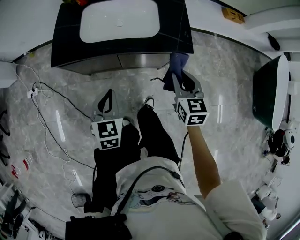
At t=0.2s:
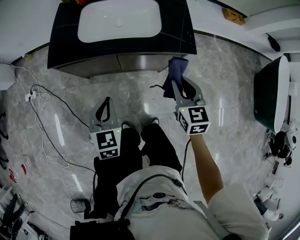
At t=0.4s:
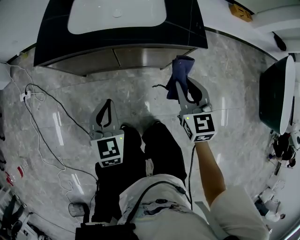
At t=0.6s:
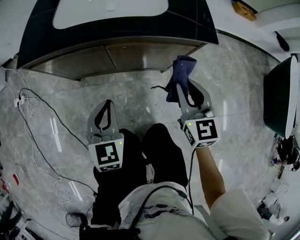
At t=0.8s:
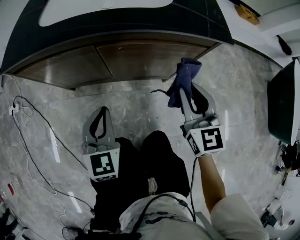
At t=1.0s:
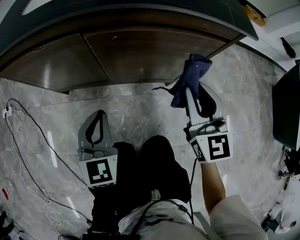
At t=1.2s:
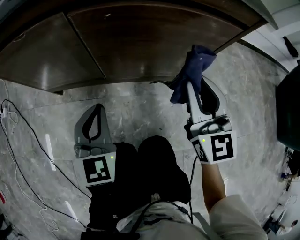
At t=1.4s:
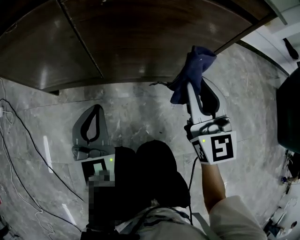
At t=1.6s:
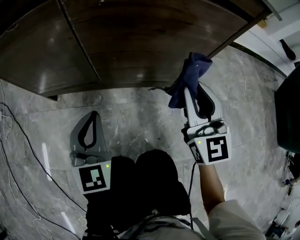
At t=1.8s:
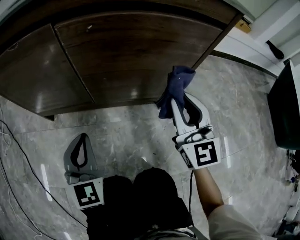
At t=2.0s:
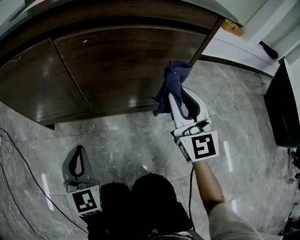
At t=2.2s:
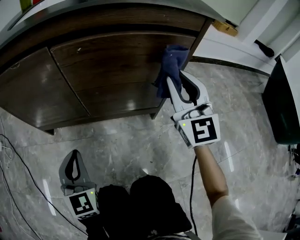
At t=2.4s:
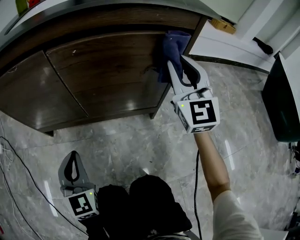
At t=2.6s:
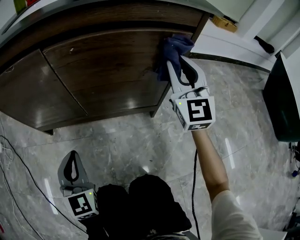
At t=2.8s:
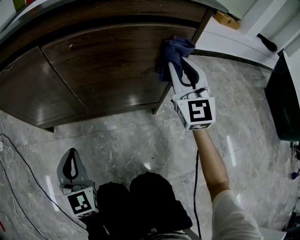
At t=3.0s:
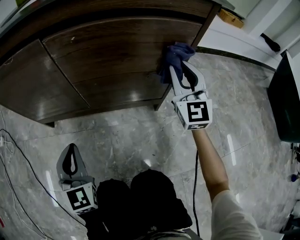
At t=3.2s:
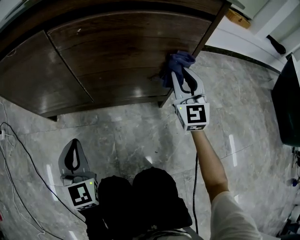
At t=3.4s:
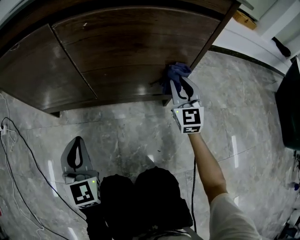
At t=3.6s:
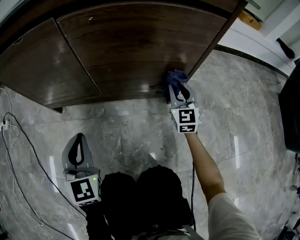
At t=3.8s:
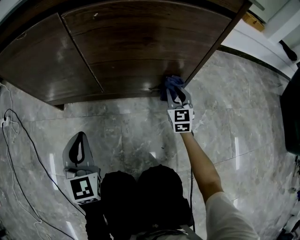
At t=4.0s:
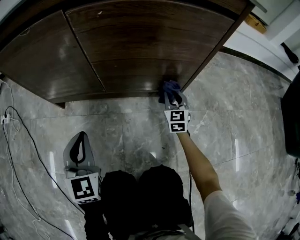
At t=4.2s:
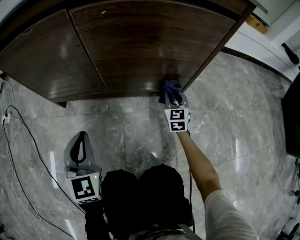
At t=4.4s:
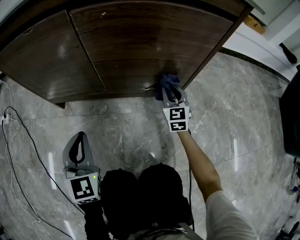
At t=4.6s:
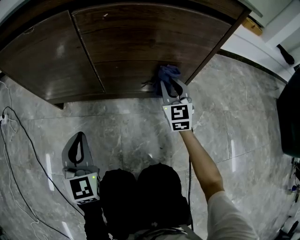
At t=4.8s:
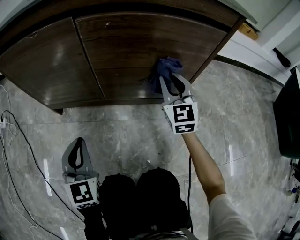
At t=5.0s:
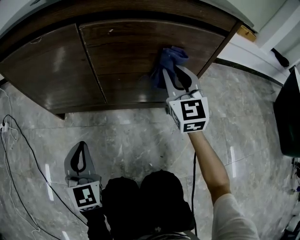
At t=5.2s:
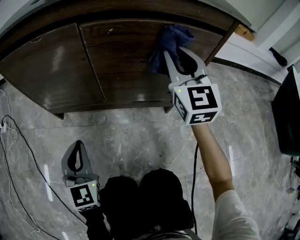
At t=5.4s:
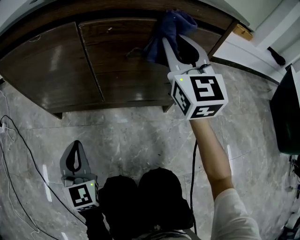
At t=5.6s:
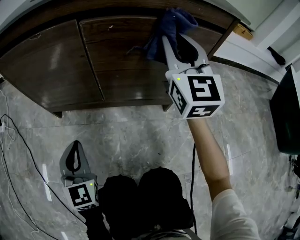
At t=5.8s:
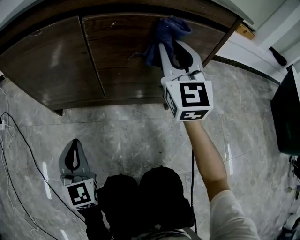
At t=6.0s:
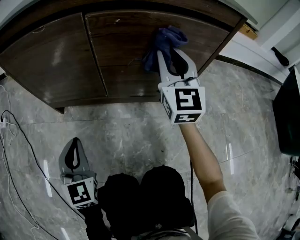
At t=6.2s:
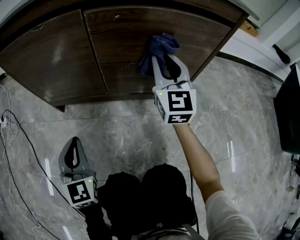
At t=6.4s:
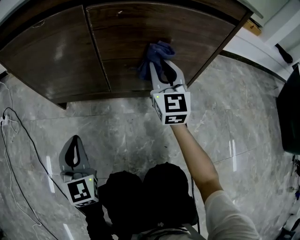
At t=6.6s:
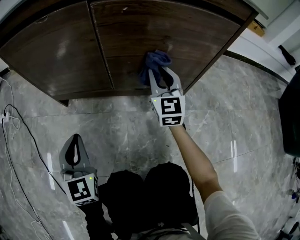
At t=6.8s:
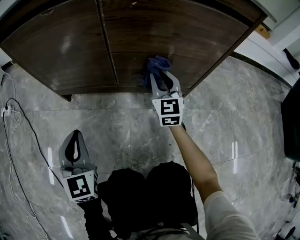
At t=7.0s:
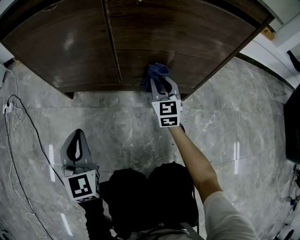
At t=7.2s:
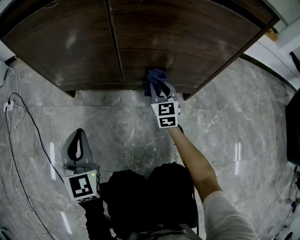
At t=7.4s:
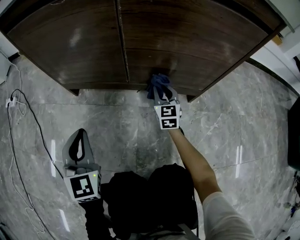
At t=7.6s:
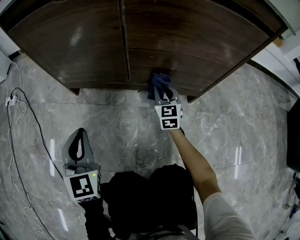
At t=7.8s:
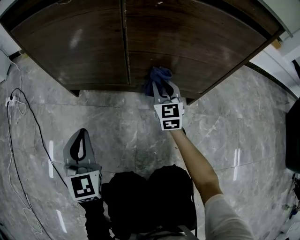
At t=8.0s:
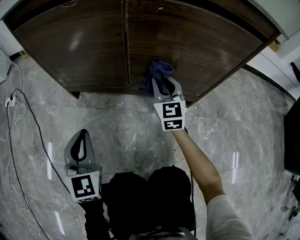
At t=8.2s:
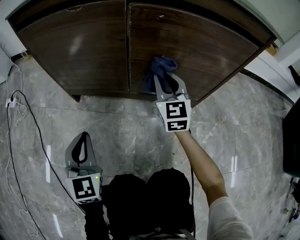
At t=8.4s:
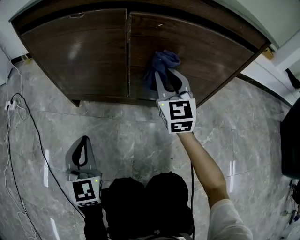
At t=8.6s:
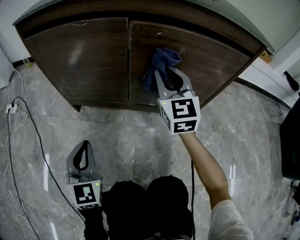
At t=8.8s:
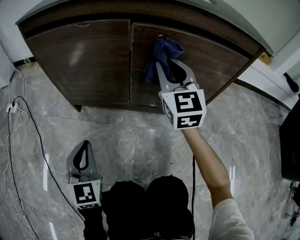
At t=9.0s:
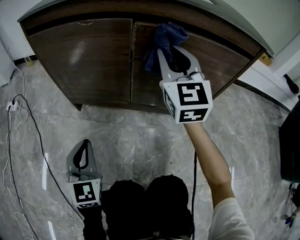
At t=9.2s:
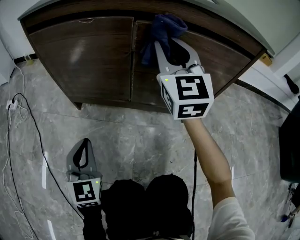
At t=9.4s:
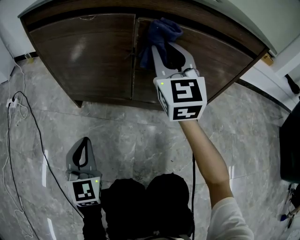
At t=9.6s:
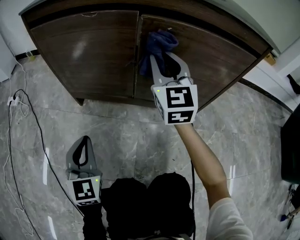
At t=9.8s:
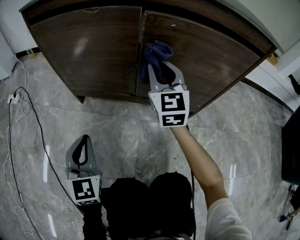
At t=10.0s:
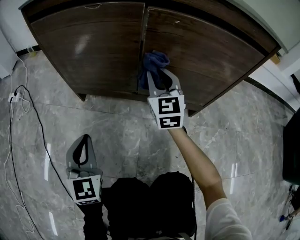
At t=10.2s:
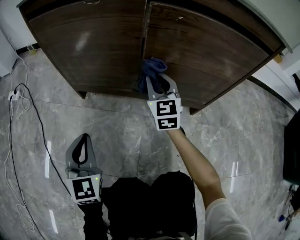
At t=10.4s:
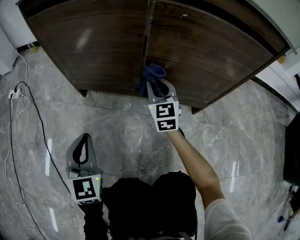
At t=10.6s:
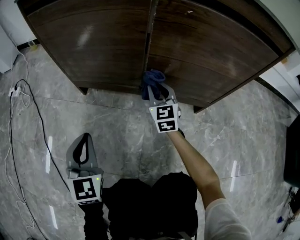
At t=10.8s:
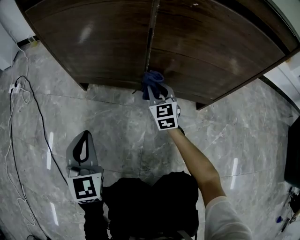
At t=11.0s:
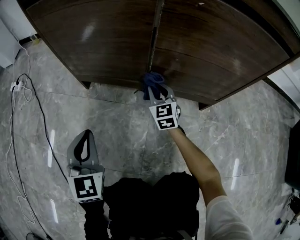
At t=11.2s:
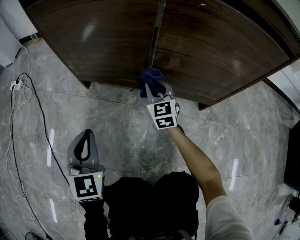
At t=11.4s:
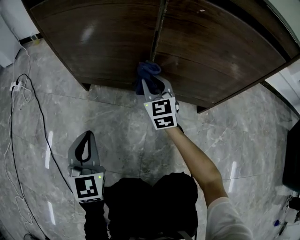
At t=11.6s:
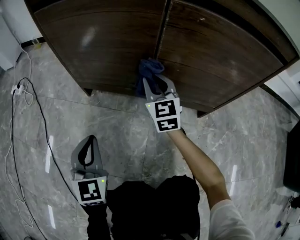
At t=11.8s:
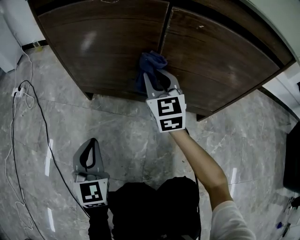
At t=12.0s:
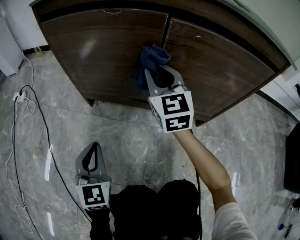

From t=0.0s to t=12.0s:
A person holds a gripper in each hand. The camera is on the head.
From t=0.0s to t=1.6s: The two grippers go approximately 40 cm downward. The left gripper turns by some 20 degrees. Meanwhile the right gripper tilts its fingers roughly 30 degrees upward.
From t=1.6s to t=3.0s: The right gripper goes roughly 10 cm forward and to the right, and moves some 10 cm upward and comes back. The left gripper changes place by approximately 5 cm.
From t=3.0s to t=4.4s: The right gripper goes some 20 cm downward, and turns by some 20 degrees.
From t=4.4s to t=6.0s: The right gripper travels upward by about 25 cm, and rotates some 20 degrees.
From t=6.0s to t=7.6s: The right gripper moves downward, some 30 cm, and rotates some 30 degrees.
From t=7.6s to t=9.0s: The right gripper goes about 35 cm upward, and rotates approximately 20 degrees.
From t=9.0s to t=10.4s: The right gripper travels downward by some 25 cm.
From t=10.4s to t=12.0s: The right gripper shifts roughly 15 cm upward and to the left.

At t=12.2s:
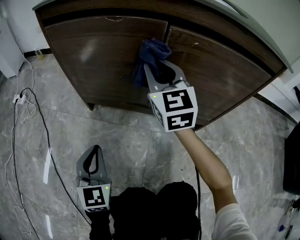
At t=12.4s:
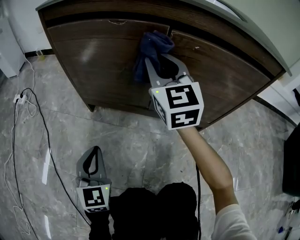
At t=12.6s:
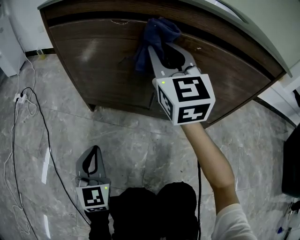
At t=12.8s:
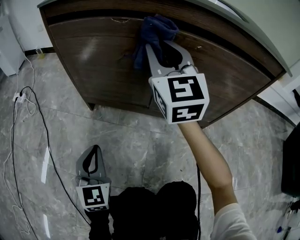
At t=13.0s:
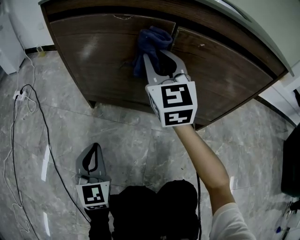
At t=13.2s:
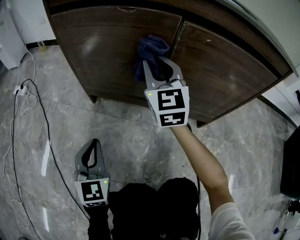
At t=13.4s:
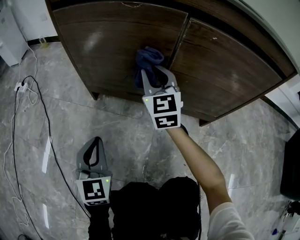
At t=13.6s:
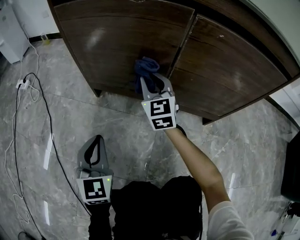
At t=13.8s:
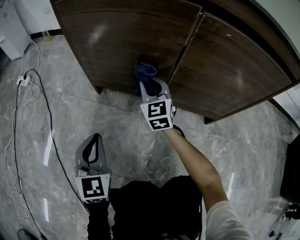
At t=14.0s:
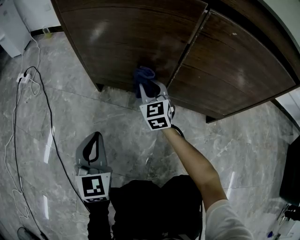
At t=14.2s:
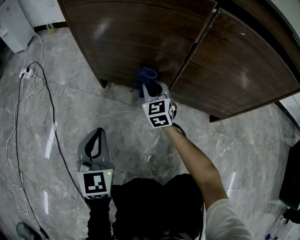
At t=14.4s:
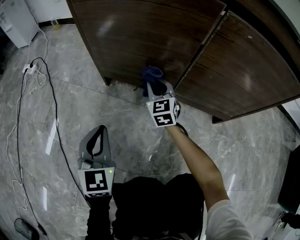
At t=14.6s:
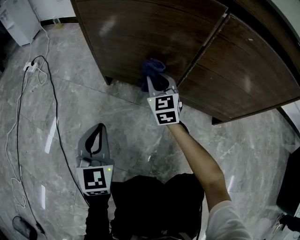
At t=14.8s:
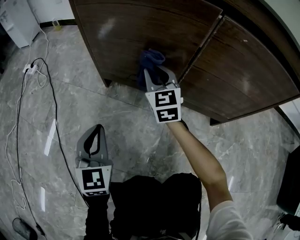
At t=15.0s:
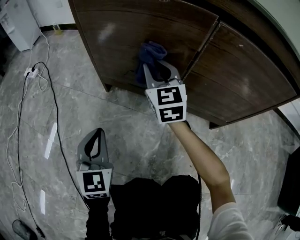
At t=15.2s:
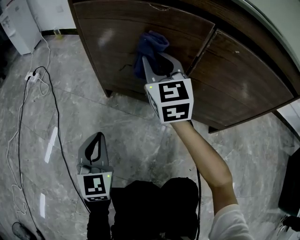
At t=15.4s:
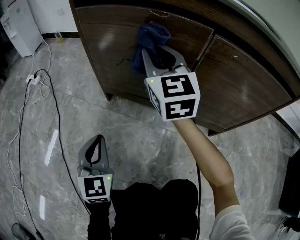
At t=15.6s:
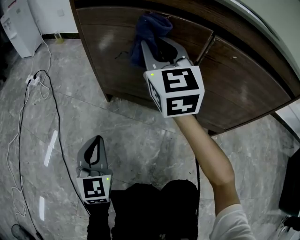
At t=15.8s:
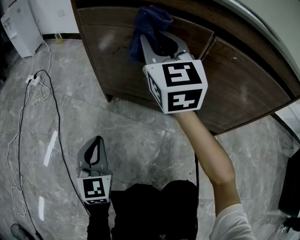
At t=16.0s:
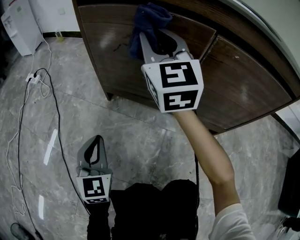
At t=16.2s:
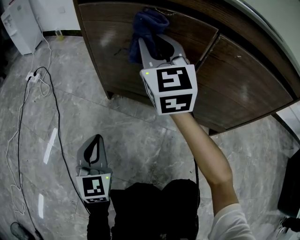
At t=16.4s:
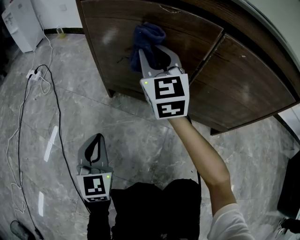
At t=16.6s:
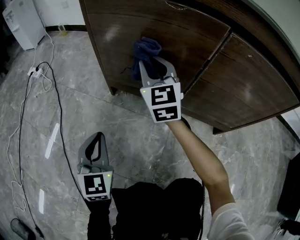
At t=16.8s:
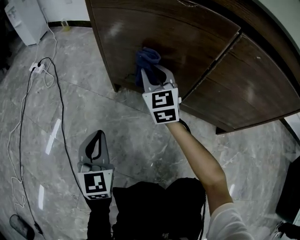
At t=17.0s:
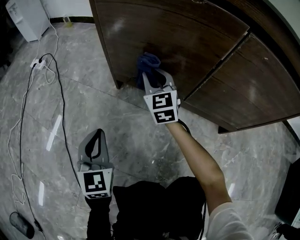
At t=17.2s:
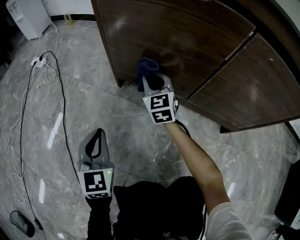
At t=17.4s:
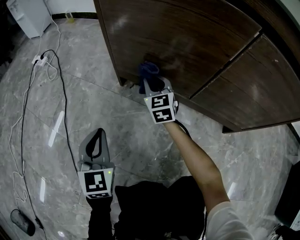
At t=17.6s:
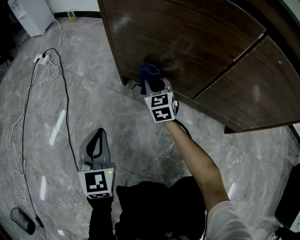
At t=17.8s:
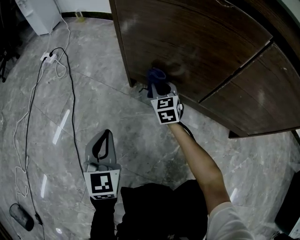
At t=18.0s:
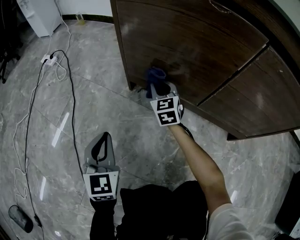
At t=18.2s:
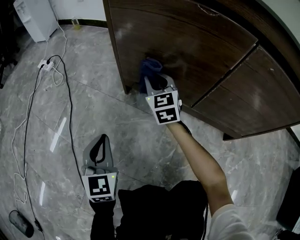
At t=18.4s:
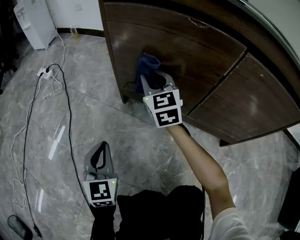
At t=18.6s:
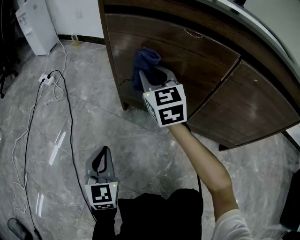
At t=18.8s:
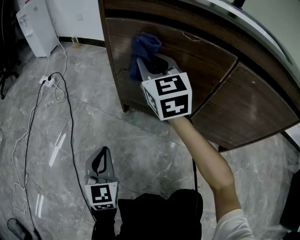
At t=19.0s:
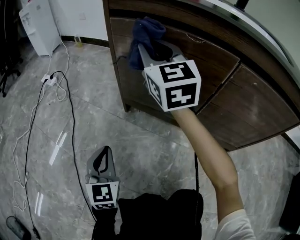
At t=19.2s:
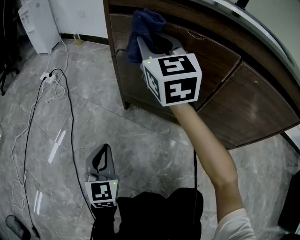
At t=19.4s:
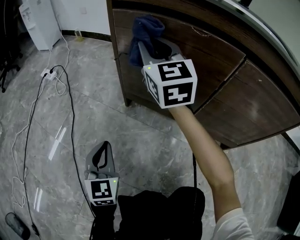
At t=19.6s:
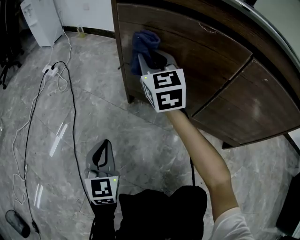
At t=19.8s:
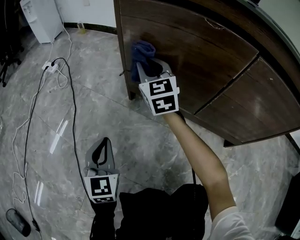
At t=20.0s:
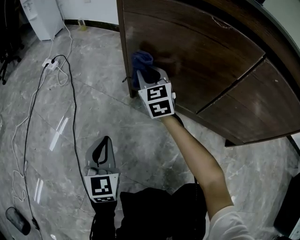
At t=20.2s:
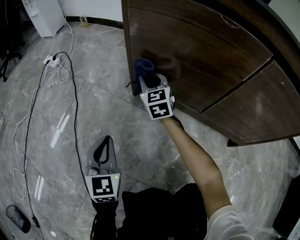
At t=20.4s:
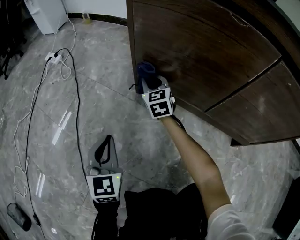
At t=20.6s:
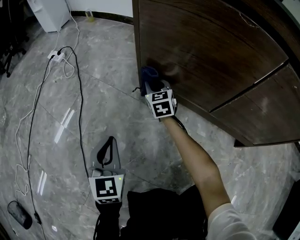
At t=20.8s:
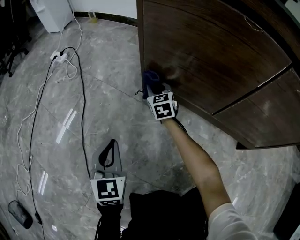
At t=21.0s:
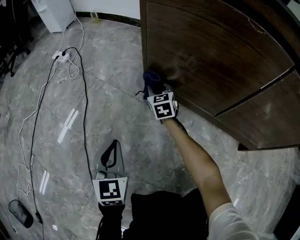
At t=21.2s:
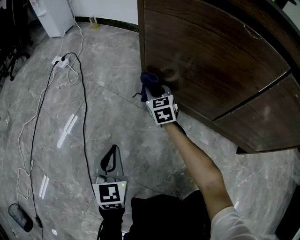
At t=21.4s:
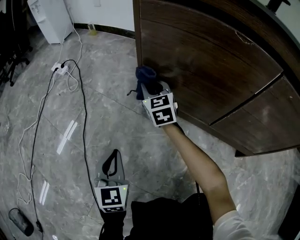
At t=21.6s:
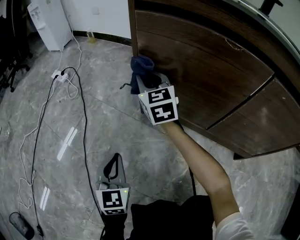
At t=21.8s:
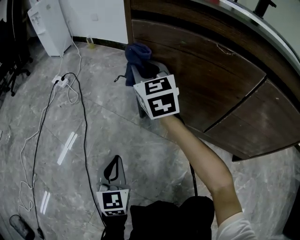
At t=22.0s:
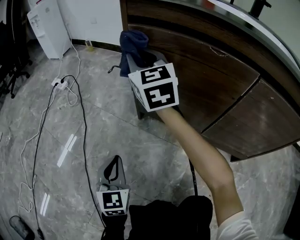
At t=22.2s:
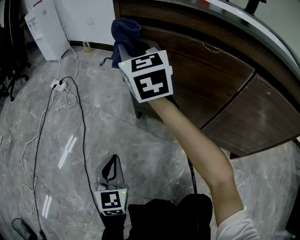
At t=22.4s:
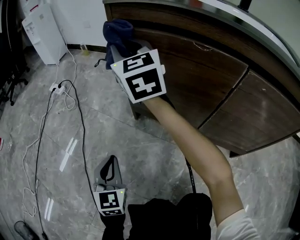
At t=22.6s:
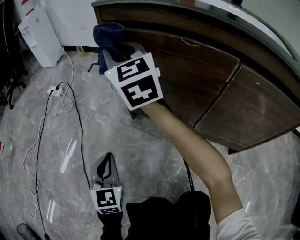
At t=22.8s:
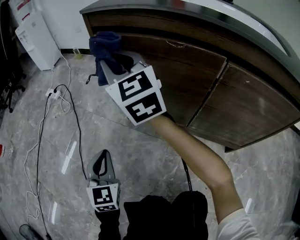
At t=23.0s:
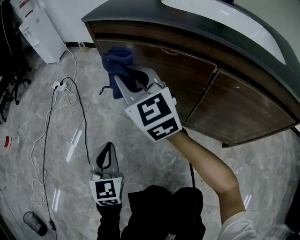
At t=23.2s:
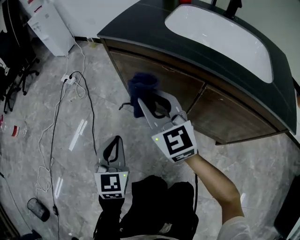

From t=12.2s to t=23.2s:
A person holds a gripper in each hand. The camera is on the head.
From t=12.2s to t=13.8s: The right gripper moves downward, about 20 cm.
From t=13.8s to t=15.4s: The right gripper shifts some 20 cm upward.
From t=15.4s to t=17.0s: The left gripper moves roughly 5 cm. The right gripper shifts approximately 20 cm downward.
From t=17.0s to t=18.4s: The right gripper is displaced upward by approximately 5 cm.
From t=18.4s to t=20.0s: The right gripper shifts about 5 cm to the left, and travels upward and back again, about 20 cm each way.
From t=20.0s to t=21.6s: The right gripper reaches some 15 cm downward, then returns.
From t=21.6s to t=23.2s: The left gripper moves upward and to the right, some 25 cm. Meanwhile the right gripper heads upward and backward, covering approximately 30 cm.

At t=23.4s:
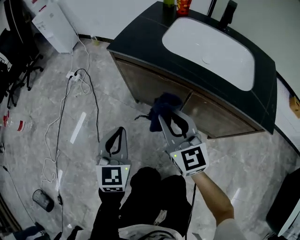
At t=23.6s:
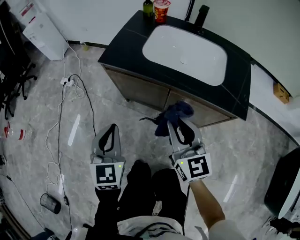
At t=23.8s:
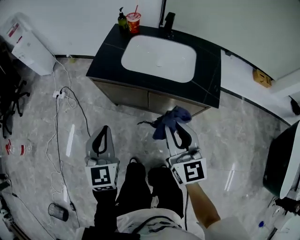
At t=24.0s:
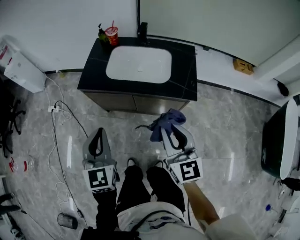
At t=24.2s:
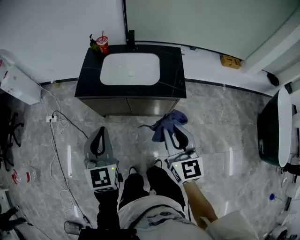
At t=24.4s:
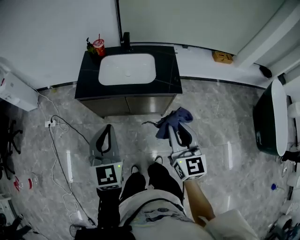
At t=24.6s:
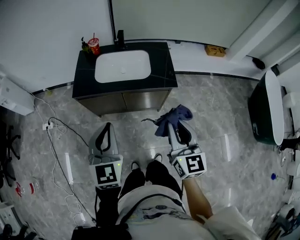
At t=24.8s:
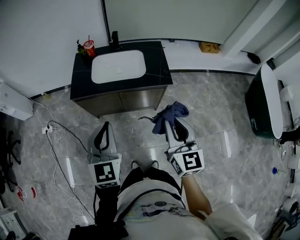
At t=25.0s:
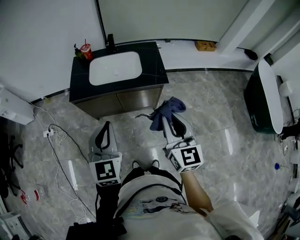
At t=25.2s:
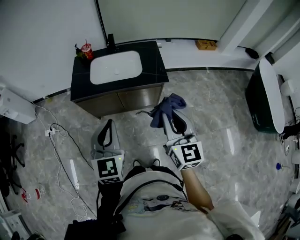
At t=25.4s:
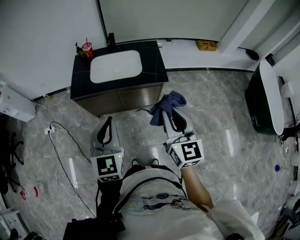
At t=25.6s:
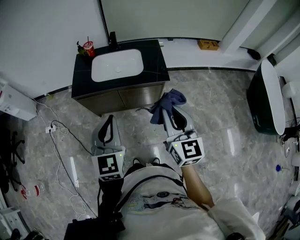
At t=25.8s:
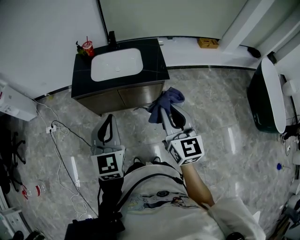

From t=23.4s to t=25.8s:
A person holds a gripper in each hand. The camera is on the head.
From t=23.4s to t=24.6s: The grippers both shift upward by roughly 40 cm. The right gripper swivels some 40 degrees; the left gripper swivels some 30 degrees.
From t=24.6s to t=25.8s: The left gripper moves roughly 5 cm.
